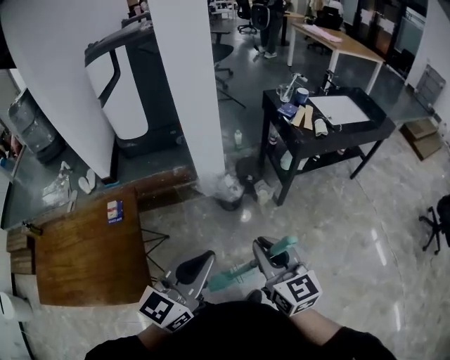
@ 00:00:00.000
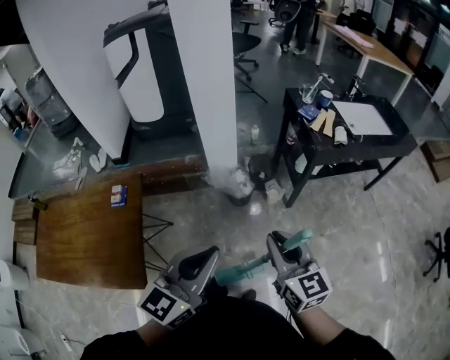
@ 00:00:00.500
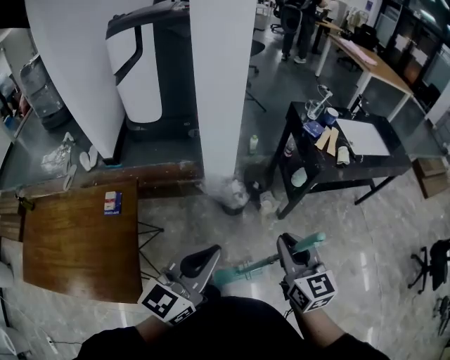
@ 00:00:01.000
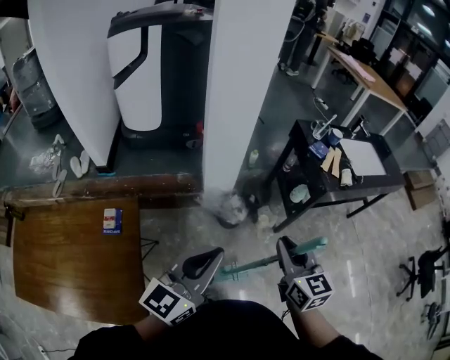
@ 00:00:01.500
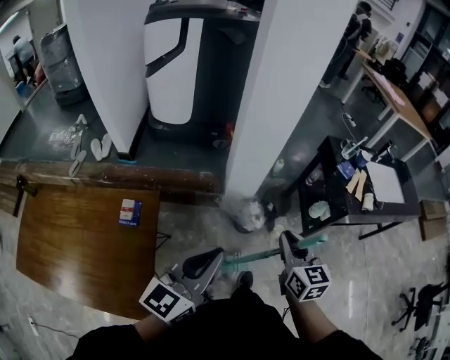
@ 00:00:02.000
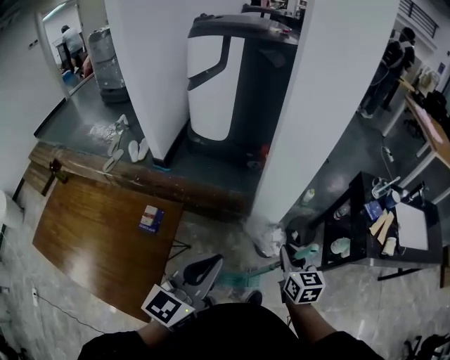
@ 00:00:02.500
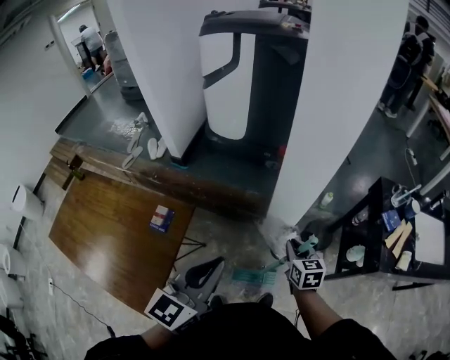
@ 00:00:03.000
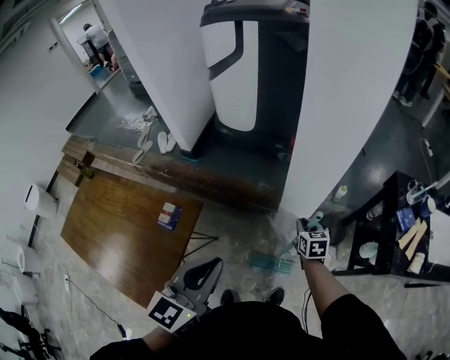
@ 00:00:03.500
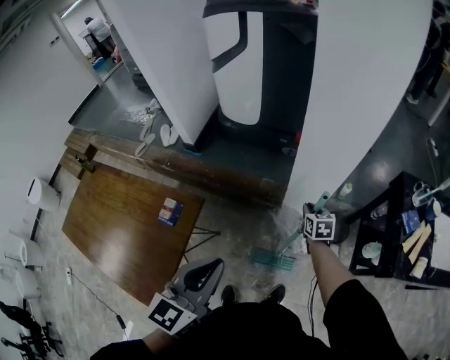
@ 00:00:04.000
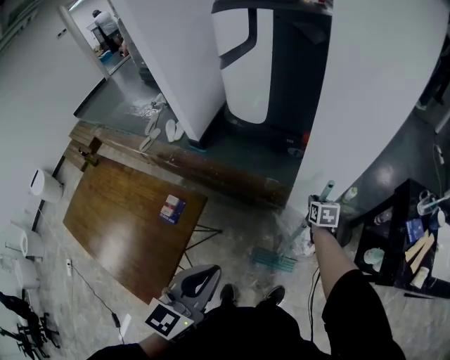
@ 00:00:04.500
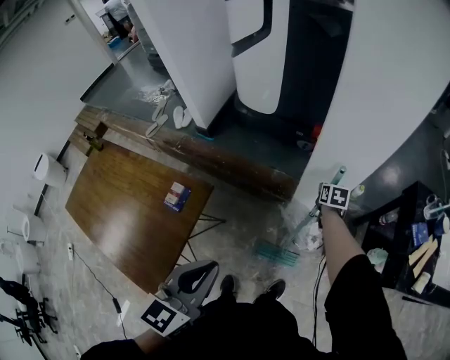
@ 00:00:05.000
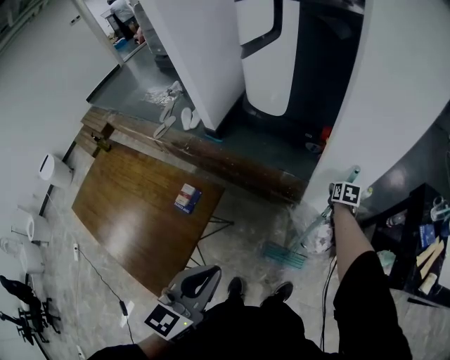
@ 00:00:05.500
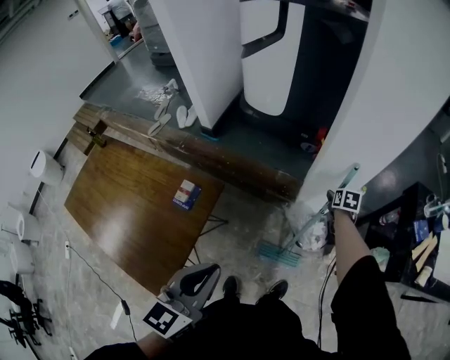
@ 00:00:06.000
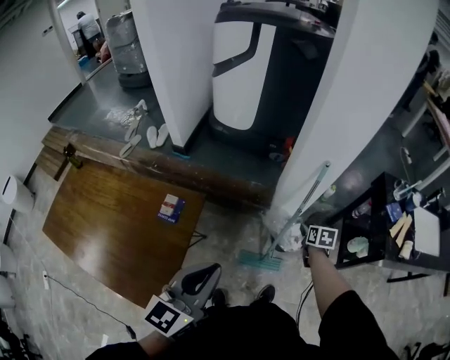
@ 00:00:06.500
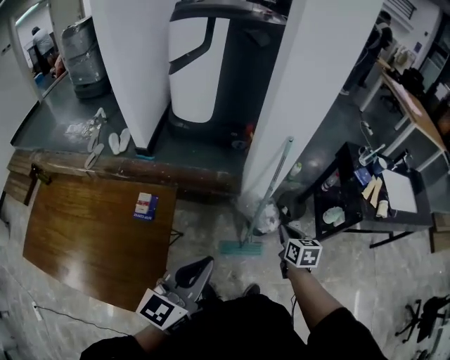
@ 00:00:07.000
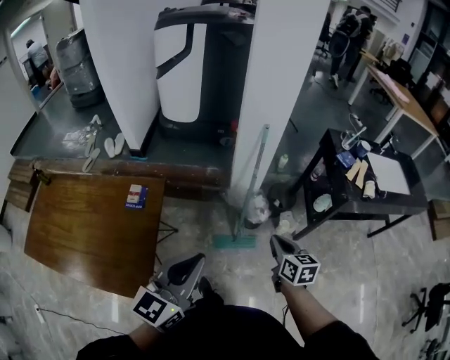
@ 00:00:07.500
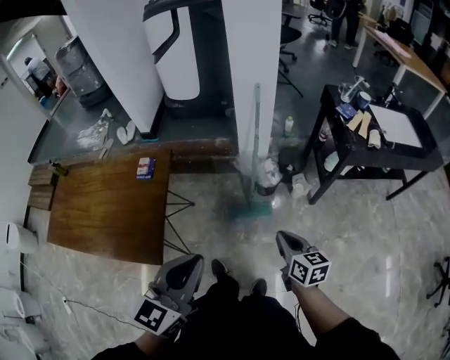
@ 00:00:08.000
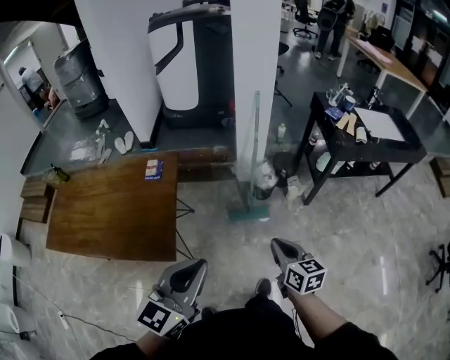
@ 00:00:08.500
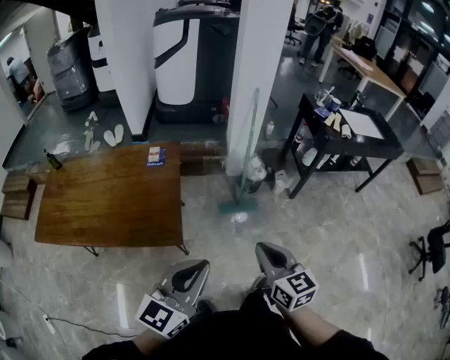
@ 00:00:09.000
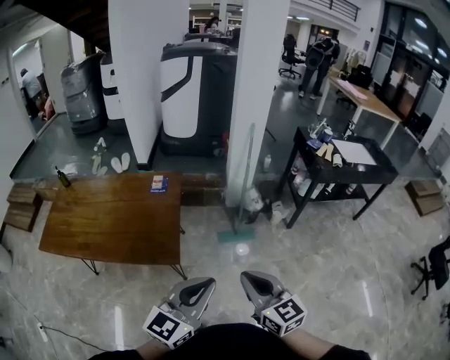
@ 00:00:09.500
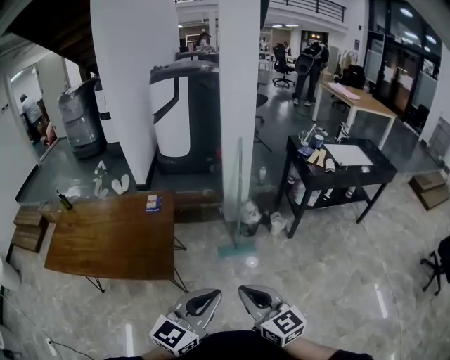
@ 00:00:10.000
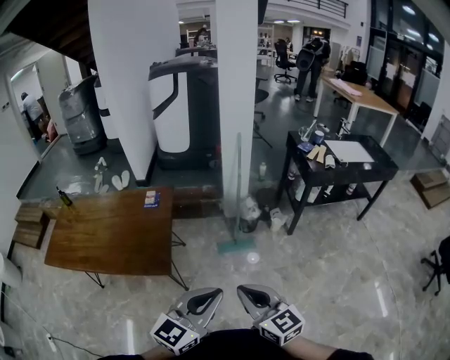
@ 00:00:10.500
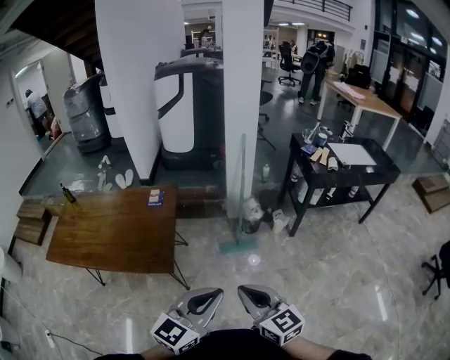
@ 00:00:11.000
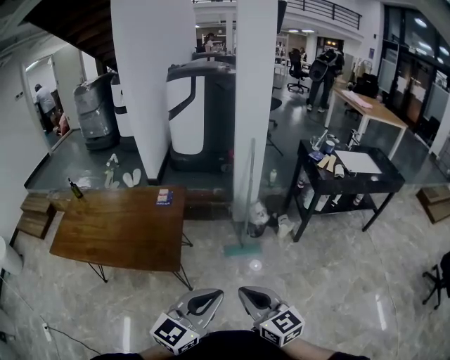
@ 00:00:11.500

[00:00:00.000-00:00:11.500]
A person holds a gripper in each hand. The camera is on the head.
00:00:00.000 to 00:00:02.000: The left gripper moves forward and to the left, approximately 25 cm. The right gripper goes approximately 25 cm forward.
00:00:02.000 to 00:00:04.000: The left gripper heads forward, covering roughly 10 cm, and swivels approximately 30 degrees; the right gripper shifts about 40 cm forward and downward, and changes its angle by some 30 degrees.
00:00:04.000 to 00:00:06.000: The right gripper is displaced forward by approximately 5 cm, and opens. Meanwhile the left gripper heads to the left and backward, covering approximately 10 cm.
00:00:06.000 to 00:00:07.500: The right gripper travels backward by roughly 40 cm, turns by some 30 degrees, and closes up. The left gripper moves backward and to the right, some 15 cm, and swivels approximately 30 degrees.
00:00:07.500 to 00:00:09.500: The two grippers go some 40 cm backward. The right gripper swivels approximately 30 degrees.
00:00:09.500 to 00:00:11.500: The left gripper heads to the right, covering roughly 5 cm. The right gripper shifts by some 5 cm.

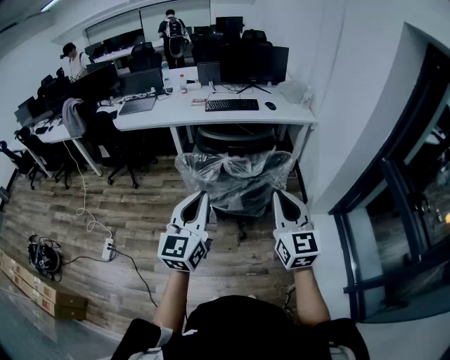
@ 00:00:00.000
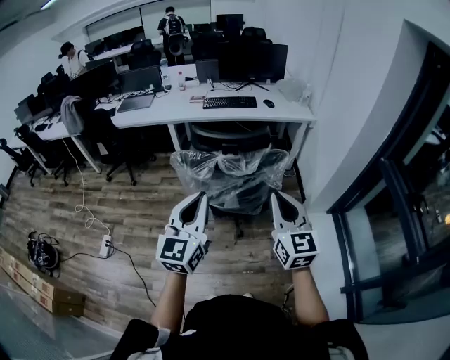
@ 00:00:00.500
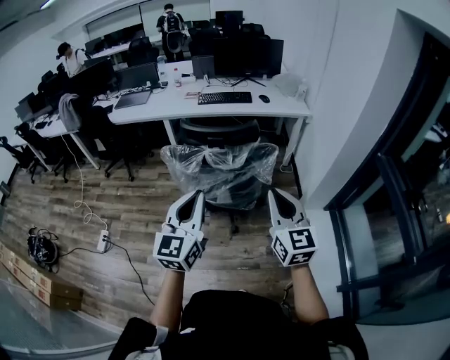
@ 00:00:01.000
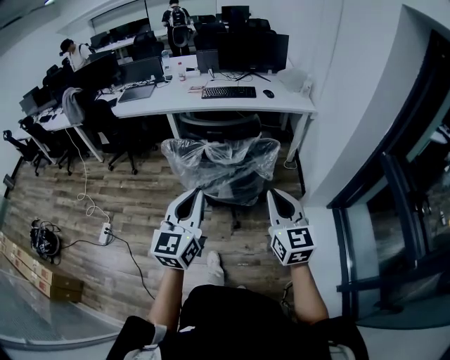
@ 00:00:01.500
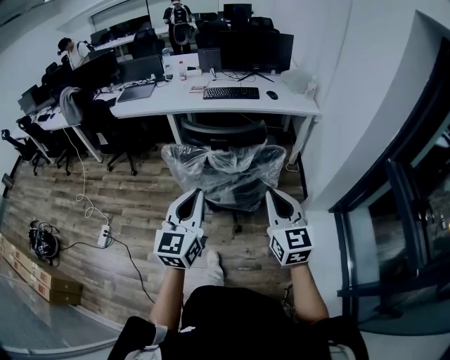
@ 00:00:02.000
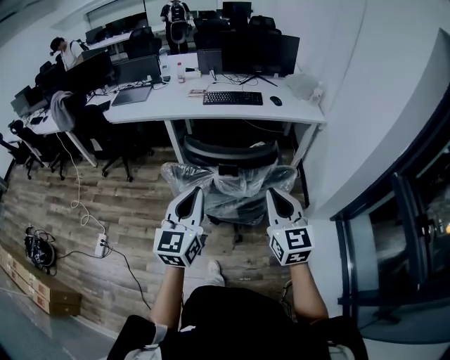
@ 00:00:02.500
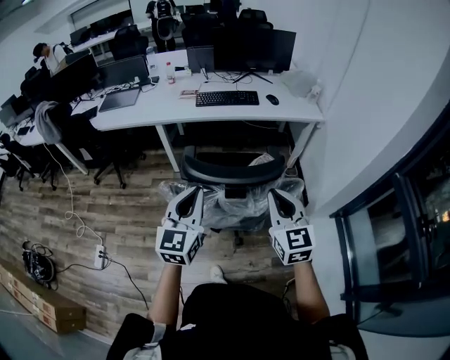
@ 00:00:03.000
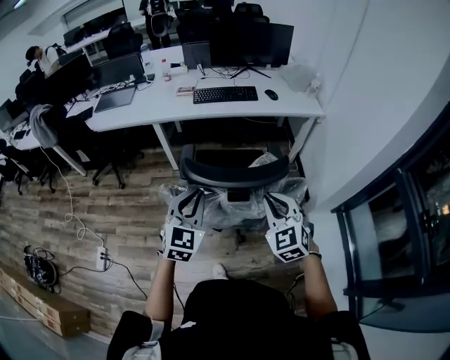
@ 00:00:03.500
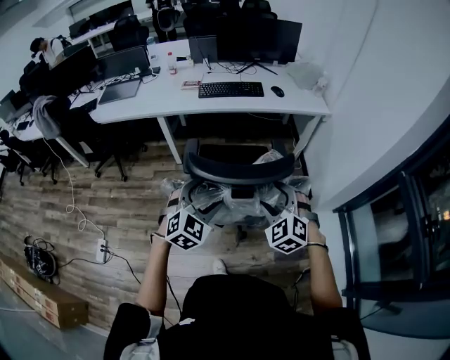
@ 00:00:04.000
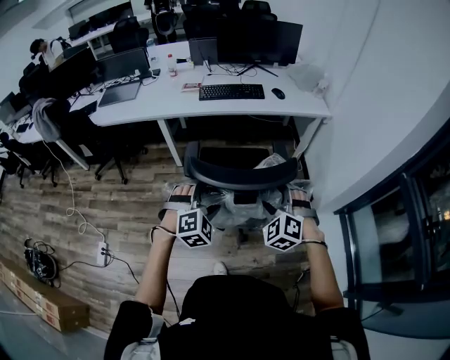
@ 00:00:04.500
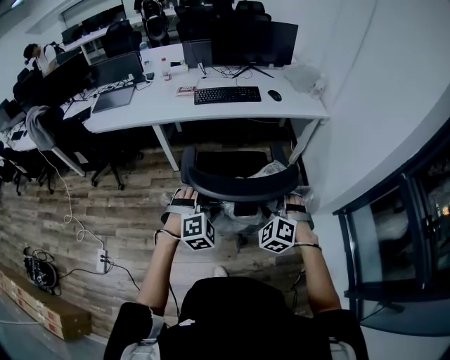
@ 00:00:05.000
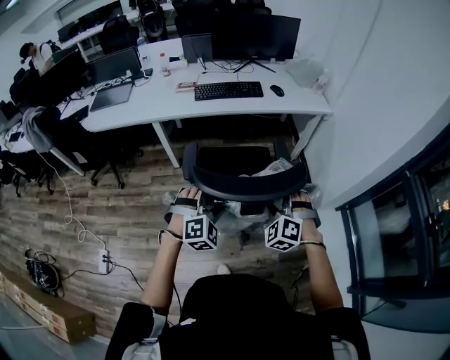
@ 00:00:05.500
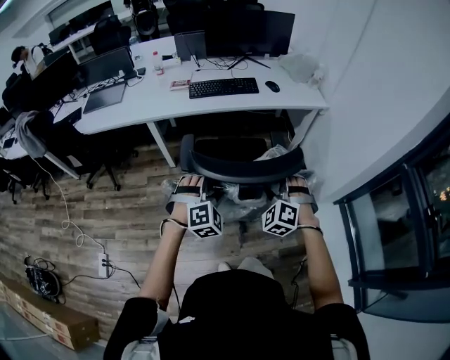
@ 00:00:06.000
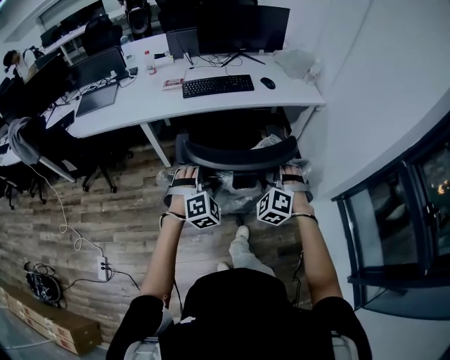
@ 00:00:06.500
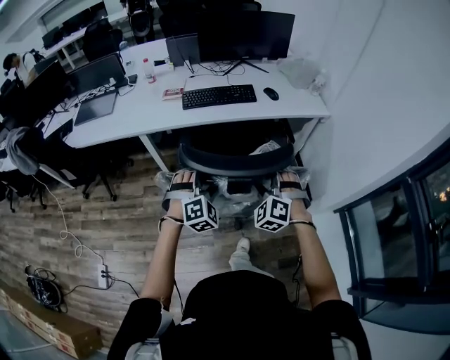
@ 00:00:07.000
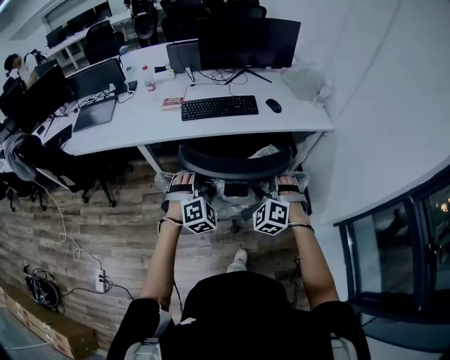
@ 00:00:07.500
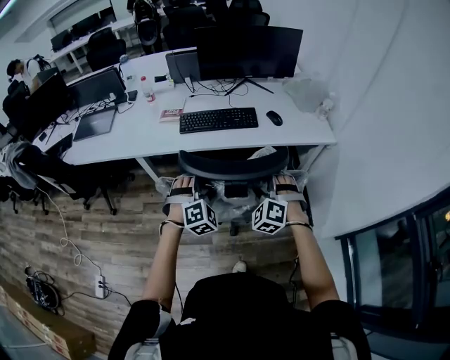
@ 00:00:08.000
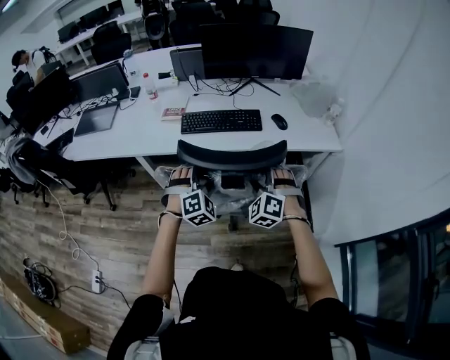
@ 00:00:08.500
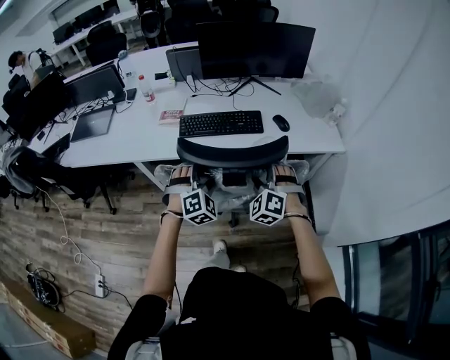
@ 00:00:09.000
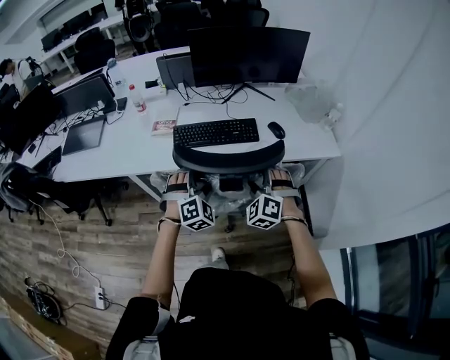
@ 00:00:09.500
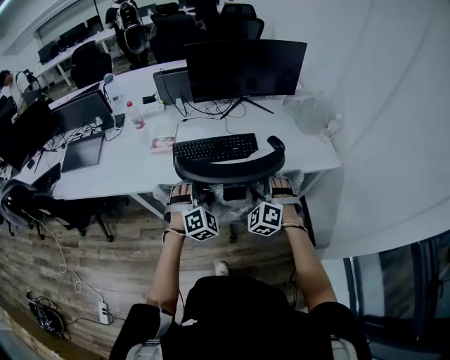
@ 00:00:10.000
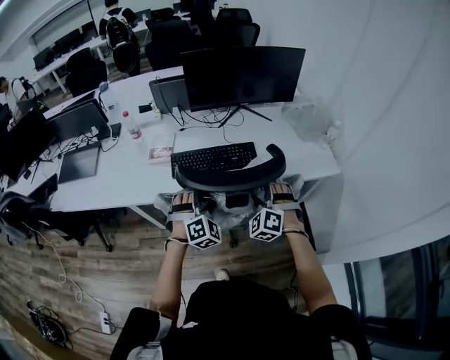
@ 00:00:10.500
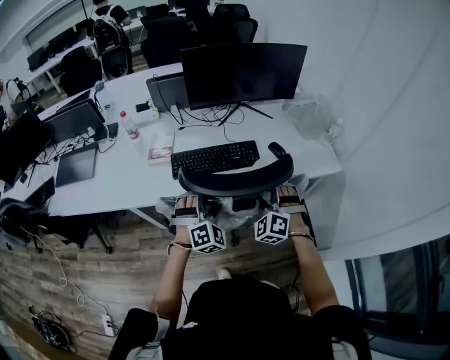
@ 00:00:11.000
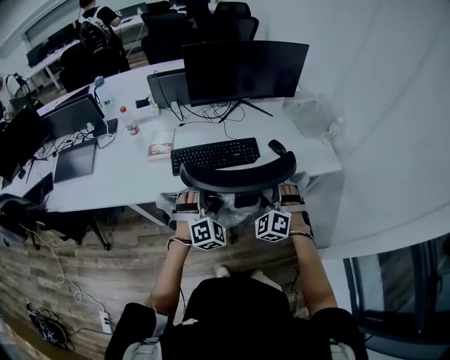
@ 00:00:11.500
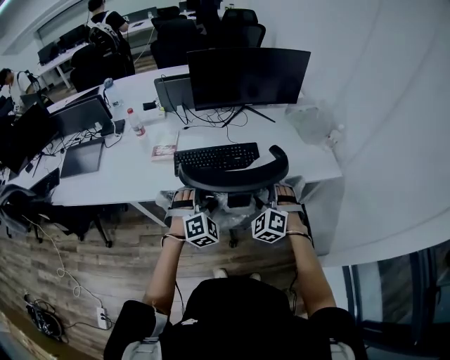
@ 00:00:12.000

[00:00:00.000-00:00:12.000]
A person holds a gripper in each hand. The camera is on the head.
00:00:00.000 to 00:00:02.000: The left gripper shifts roughly 5 cm to the right; the right gripper heads downward and to the right, covering roughly 10 cm.
00:00:02.000 to 00:00:04.000: The right gripper goes roughly 25 cm forward, downward and to the left, rotates around the line of its fingers by roughly 40 degrees, counterclockwise from behind, and opens its fingers; the left gripper goes about 25 cm forward and downward, tilts its fingers some 30 degrees downward, and opens its fingers.
00:00:04.000 to 00:00:06.000: The right gripper travels forward by approximately 10 cm. Meanwhile the left gripper goes approximately 10 cm forward and downward, and changes its angle by approximately 30 degrees.
00:00:06.000 to 00:00:08.000: Both grippers move forward, about 25 cm.
00:00:08.000 to 00:00:10.000: Both grippers travel together forward, approximately 20 cm.
00:00:10.000 to 00:00:12.000: The grippers stay close to where they were, moving slightly.

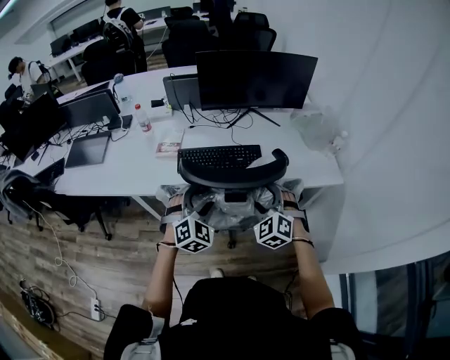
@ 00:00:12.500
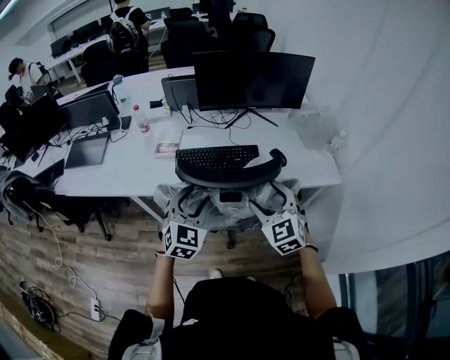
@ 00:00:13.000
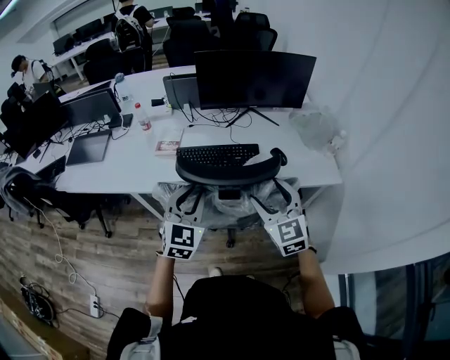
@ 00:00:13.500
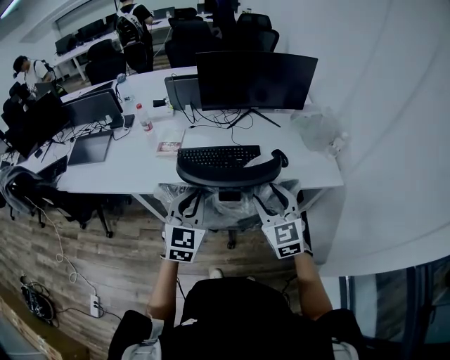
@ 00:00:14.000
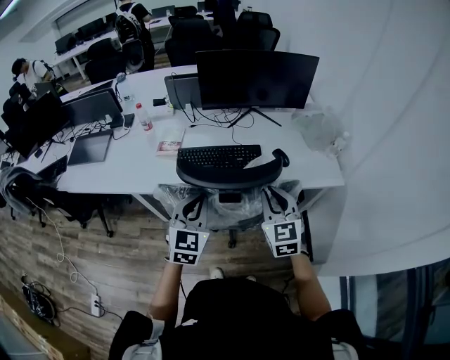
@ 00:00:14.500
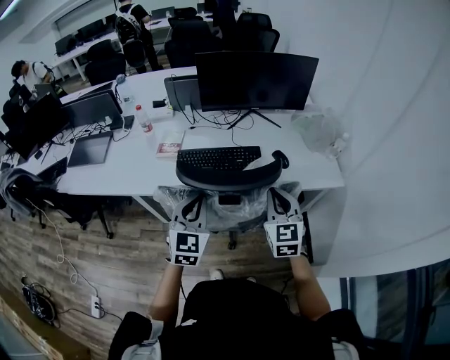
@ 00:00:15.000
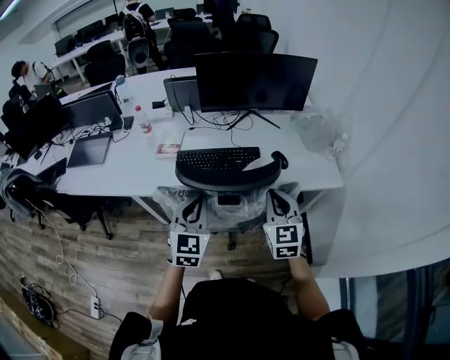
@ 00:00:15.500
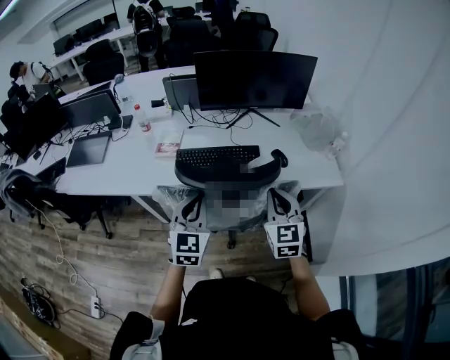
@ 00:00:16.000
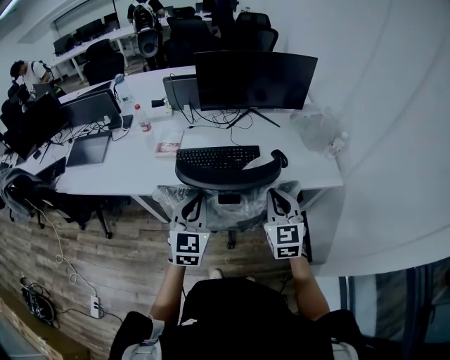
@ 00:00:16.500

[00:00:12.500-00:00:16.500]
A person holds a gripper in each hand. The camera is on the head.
00:00:12.500 to 00:00:14.500: The grippers both shift upward by roughly 5 cm. The right gripper turns by approximately 40 degrees, and closes up; the left gripper swivels some 30 degrees, and closes up.
00:00:14.500 to 00:00:16.500: The grippers stay close to where they were, moving slightly.
